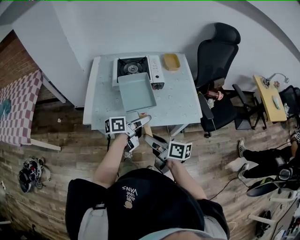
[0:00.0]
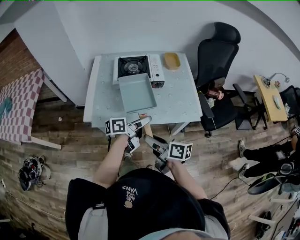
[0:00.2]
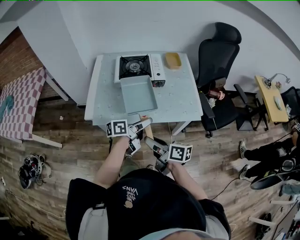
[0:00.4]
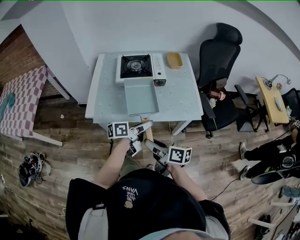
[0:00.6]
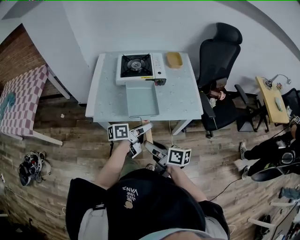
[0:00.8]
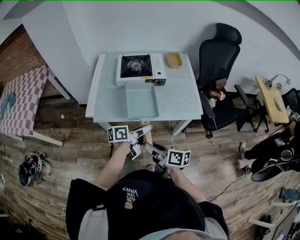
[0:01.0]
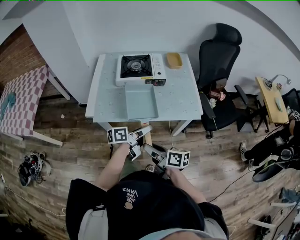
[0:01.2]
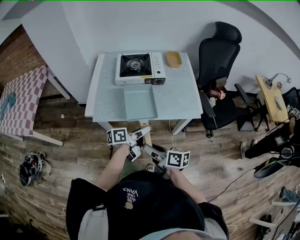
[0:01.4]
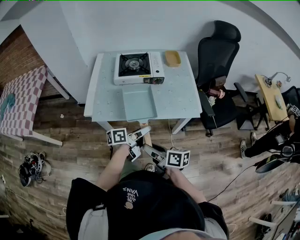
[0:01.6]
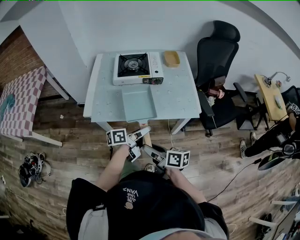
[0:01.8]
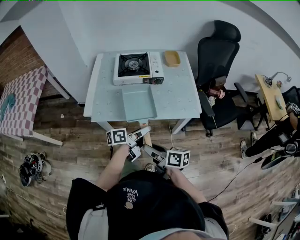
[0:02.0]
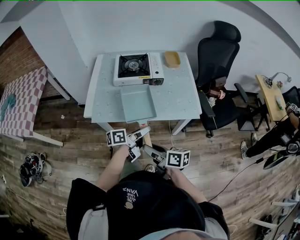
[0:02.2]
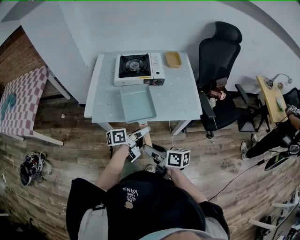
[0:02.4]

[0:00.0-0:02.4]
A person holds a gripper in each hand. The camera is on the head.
0.0 to 1.2 s: Both grippers move backward, about 10 cm.
1.2 to 2.4 s: Neither gripper changes place.

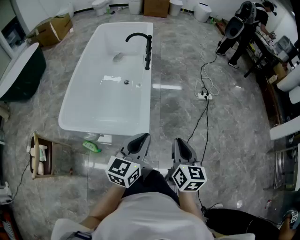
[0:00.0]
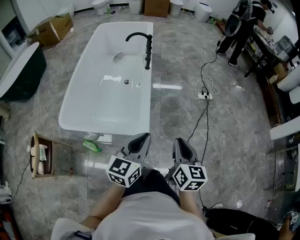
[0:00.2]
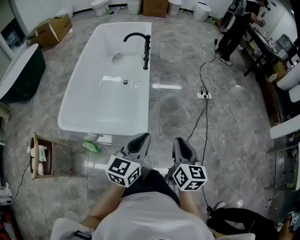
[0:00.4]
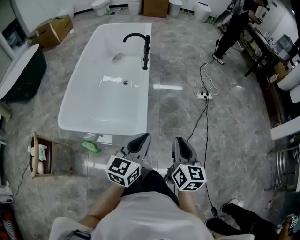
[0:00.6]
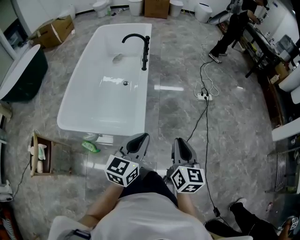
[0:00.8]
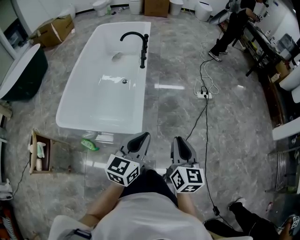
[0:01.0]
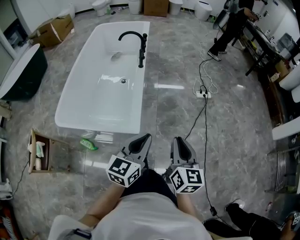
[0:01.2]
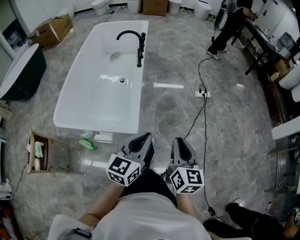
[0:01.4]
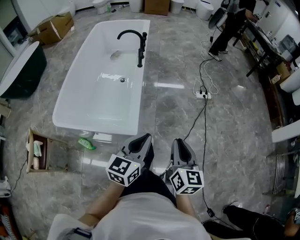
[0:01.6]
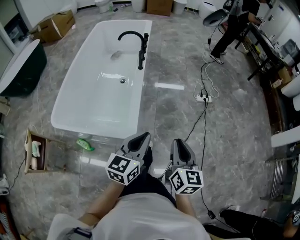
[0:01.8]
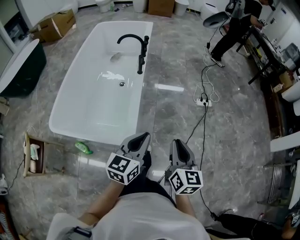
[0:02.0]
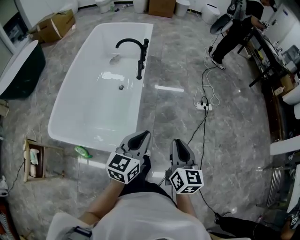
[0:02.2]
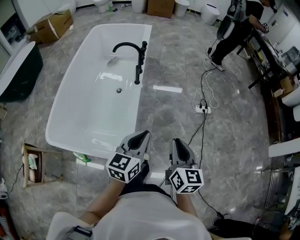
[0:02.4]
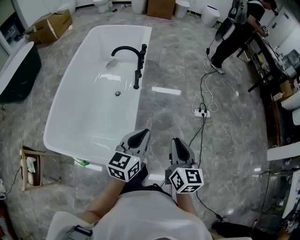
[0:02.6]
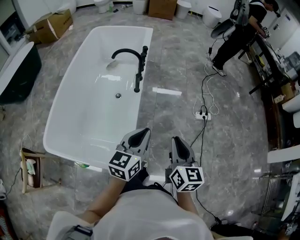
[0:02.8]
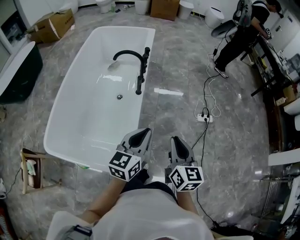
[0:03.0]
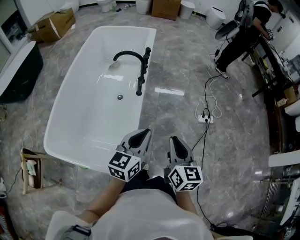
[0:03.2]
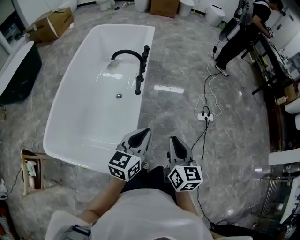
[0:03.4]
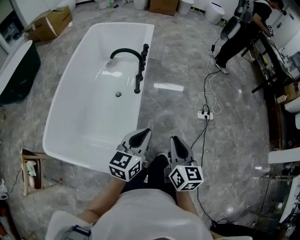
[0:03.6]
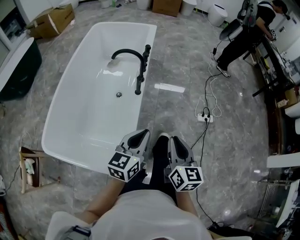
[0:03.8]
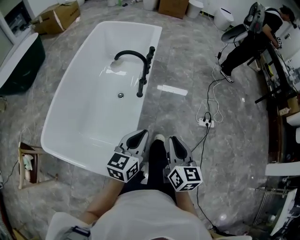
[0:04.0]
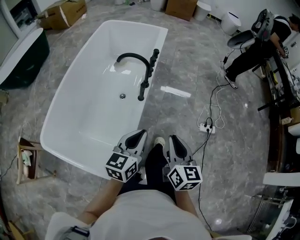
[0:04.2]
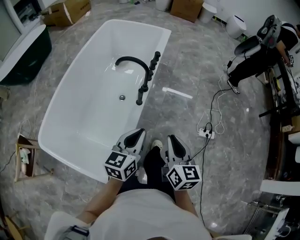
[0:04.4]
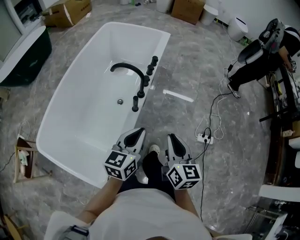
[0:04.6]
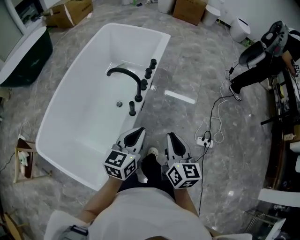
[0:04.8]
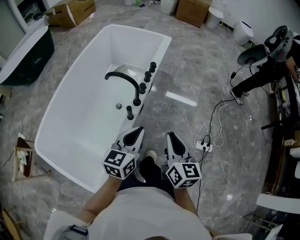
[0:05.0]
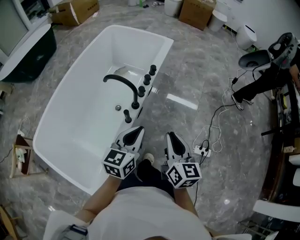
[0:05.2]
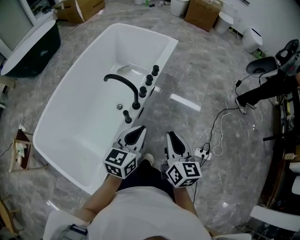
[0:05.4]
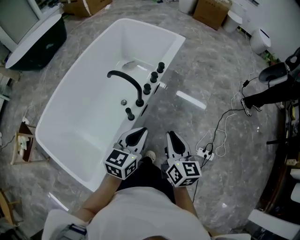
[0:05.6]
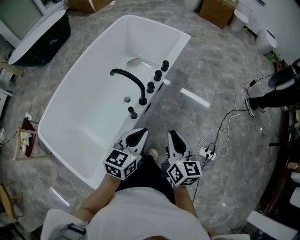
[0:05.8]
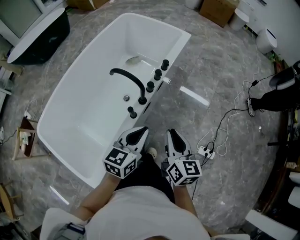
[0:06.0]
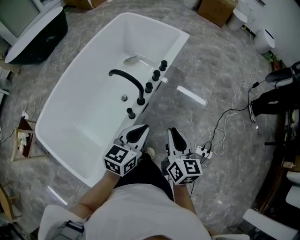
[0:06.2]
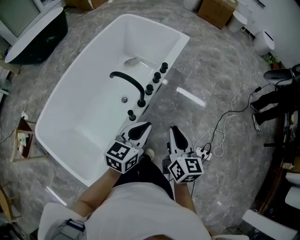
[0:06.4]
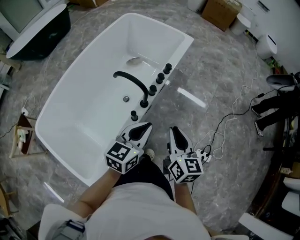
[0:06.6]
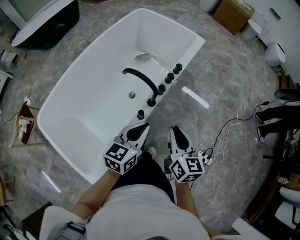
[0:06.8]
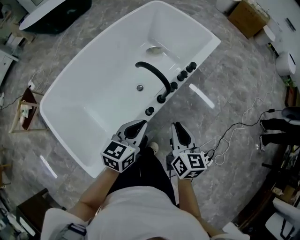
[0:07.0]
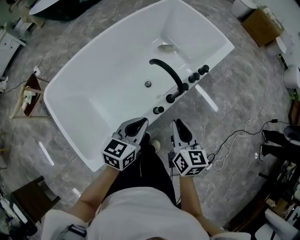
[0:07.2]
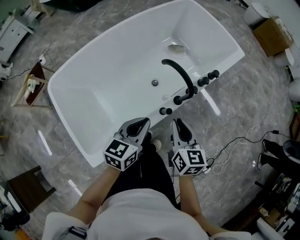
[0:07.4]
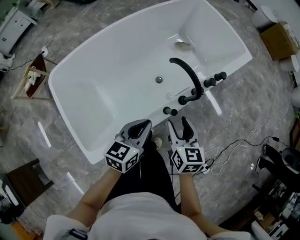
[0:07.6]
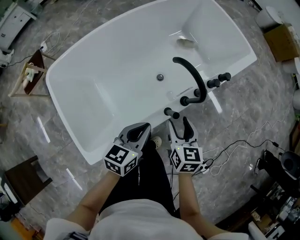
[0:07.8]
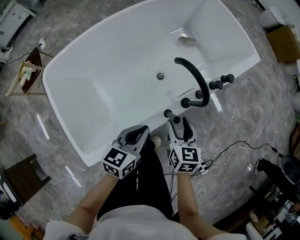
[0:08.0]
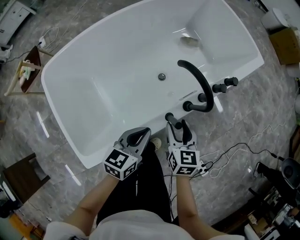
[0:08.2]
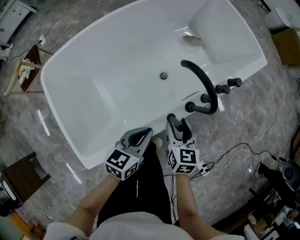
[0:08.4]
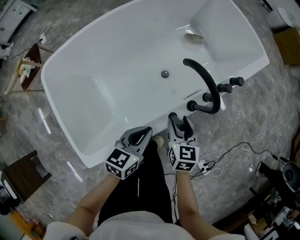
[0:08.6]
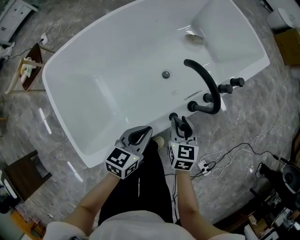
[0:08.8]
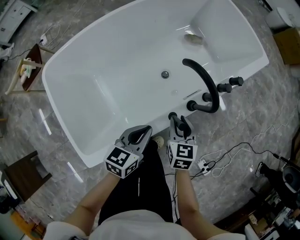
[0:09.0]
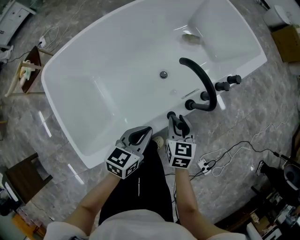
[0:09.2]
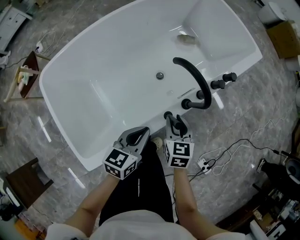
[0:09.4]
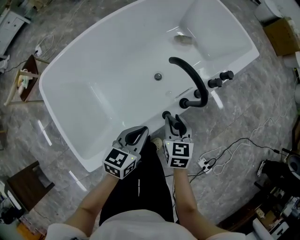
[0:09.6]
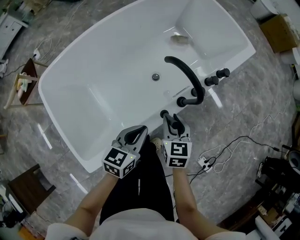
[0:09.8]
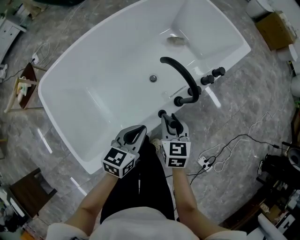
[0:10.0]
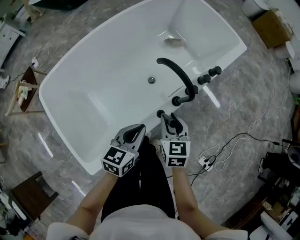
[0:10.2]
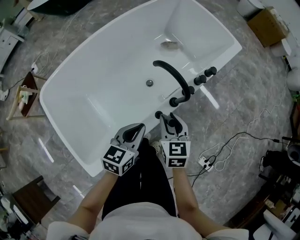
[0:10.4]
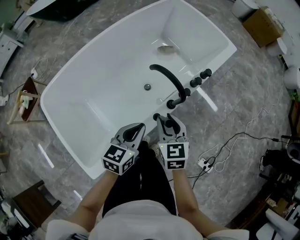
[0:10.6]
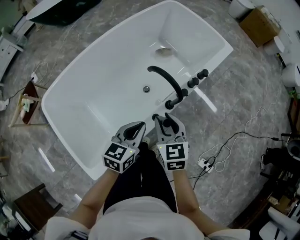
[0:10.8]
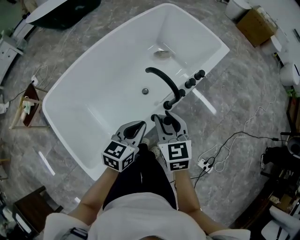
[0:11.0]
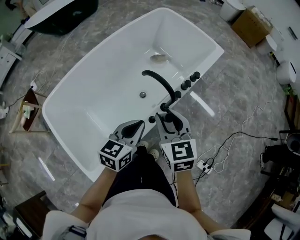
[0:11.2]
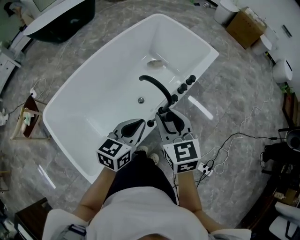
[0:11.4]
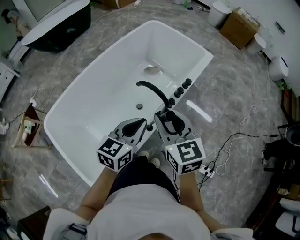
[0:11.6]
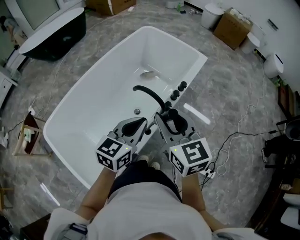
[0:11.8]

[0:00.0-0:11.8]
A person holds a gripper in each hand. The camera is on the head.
0.0 to 1.4 s: The two grippers go some 10 cm to the right.
1.4 to 3.0 s: Both grippers travel together forward, some 30 cm.
3.0 to 4.4 s: The grippers both shift forward by roughly 15 cm.
4.4 to 6.0 s: The right gripper moves forward, approximately 20 cm. Meanwhile the left gripper goes about 20 cm forward and to the right.
6.0 to 7.4 s: The left gripper moves to the left, some 15 cm, and changes its angle by about 20 degrees; the right gripper heads to the left and forward, covering roughly 20 cm, and turns by some 30 degrees.
7.4 to 8.8 s: Both grippers travel together downward, approximately 15 cm. The right gripper opens its fingers.
8.8 to 10.4 s: The two grippers go roughly 5 cm upward.
10.4 to 11.8 s: Both grippers move upward, about 20 cm. The left gripper changes its angle by approximately 20 degrees.

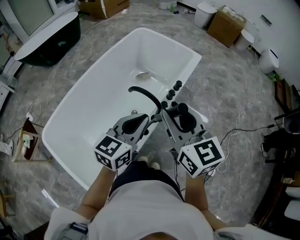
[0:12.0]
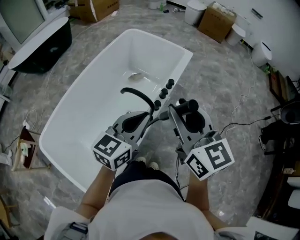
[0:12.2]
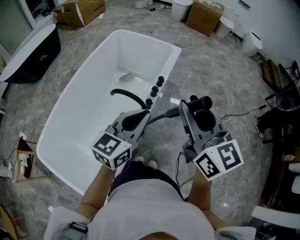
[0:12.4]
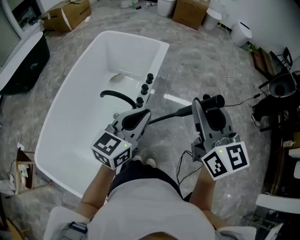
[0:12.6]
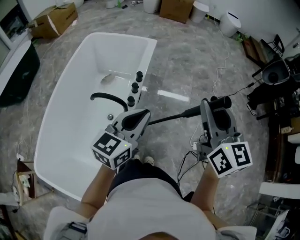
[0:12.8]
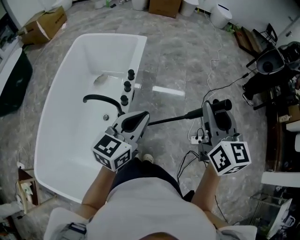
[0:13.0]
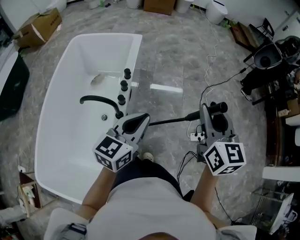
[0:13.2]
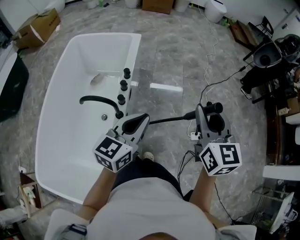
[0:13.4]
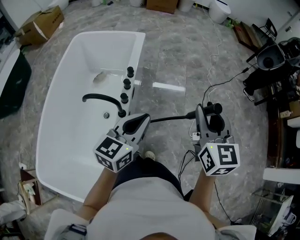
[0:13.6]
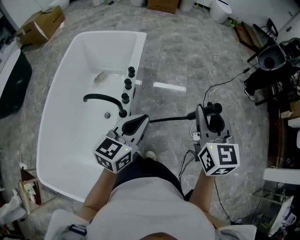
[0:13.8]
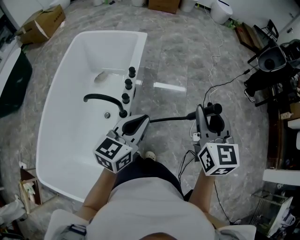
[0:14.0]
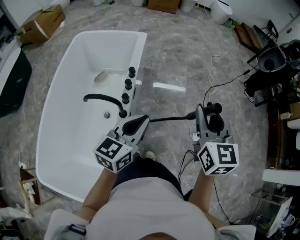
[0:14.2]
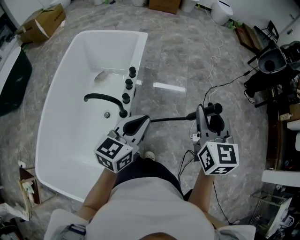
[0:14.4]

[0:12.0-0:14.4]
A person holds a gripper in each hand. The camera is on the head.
12.0 to 13.2 s: The left gripper changes place by roughly 20 cm, and turns by some 30 degrees. Meanwhile the right gripper shifts by some 30 cm, and changes its angle by roughly 50 degrees.
13.2 to 14.4 s: The grippers move only a little.

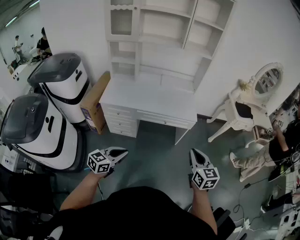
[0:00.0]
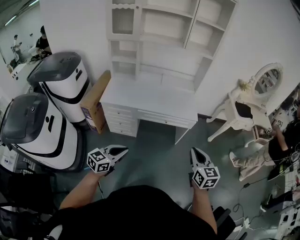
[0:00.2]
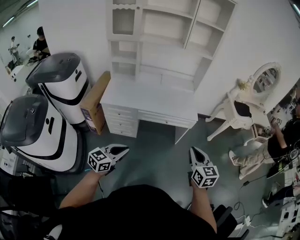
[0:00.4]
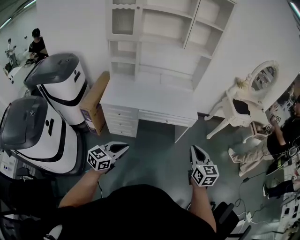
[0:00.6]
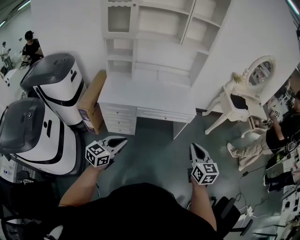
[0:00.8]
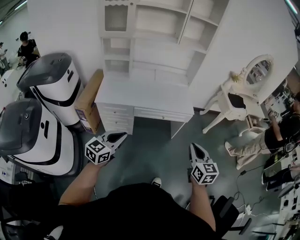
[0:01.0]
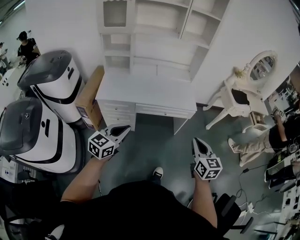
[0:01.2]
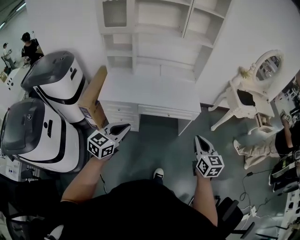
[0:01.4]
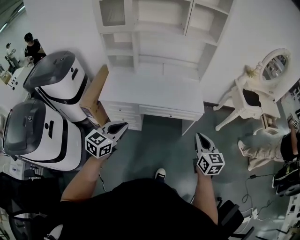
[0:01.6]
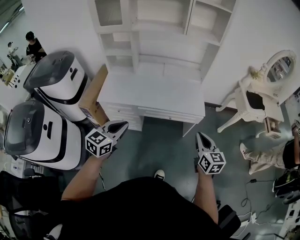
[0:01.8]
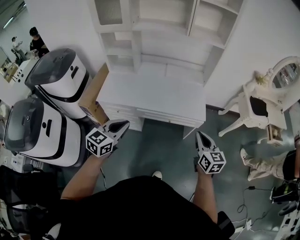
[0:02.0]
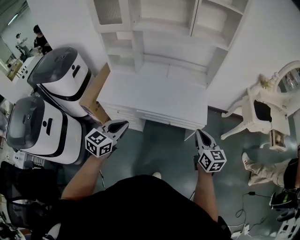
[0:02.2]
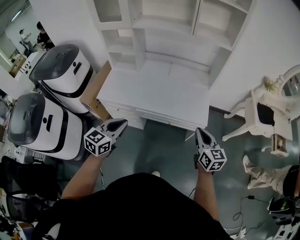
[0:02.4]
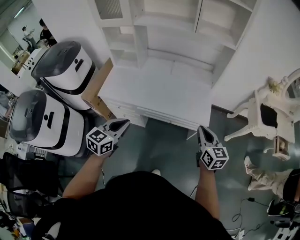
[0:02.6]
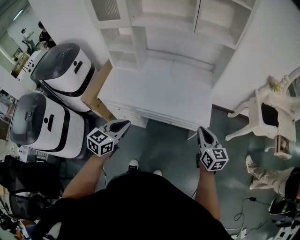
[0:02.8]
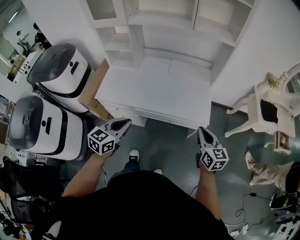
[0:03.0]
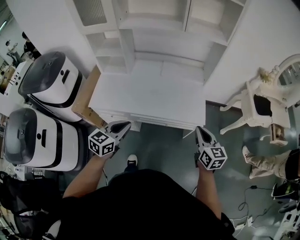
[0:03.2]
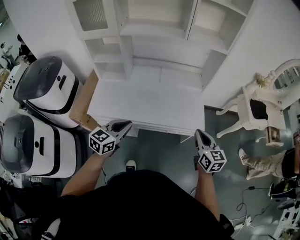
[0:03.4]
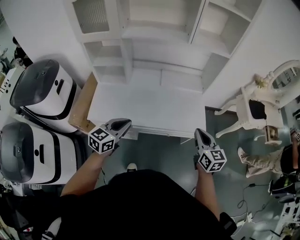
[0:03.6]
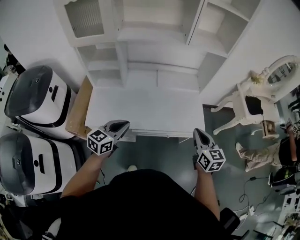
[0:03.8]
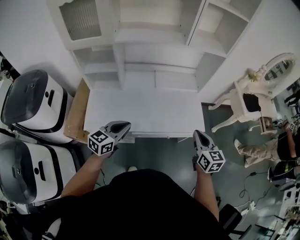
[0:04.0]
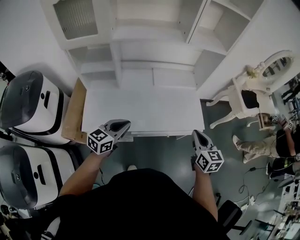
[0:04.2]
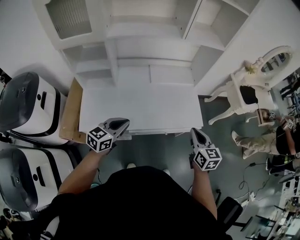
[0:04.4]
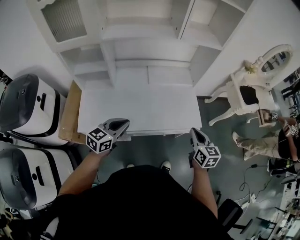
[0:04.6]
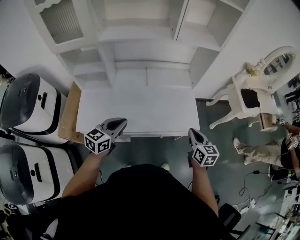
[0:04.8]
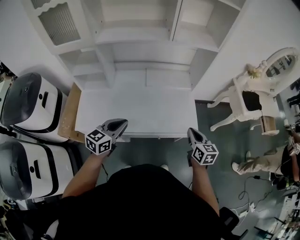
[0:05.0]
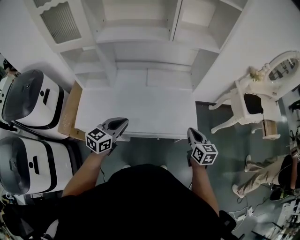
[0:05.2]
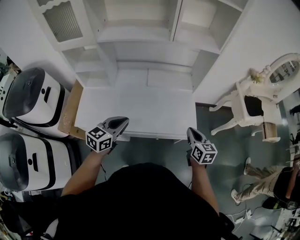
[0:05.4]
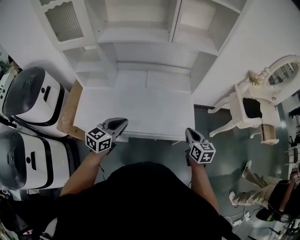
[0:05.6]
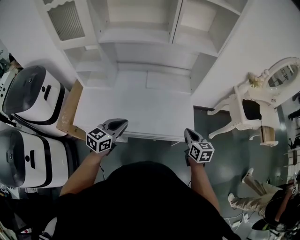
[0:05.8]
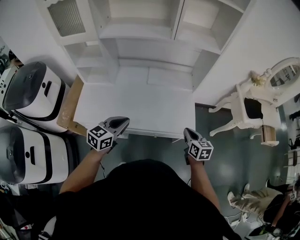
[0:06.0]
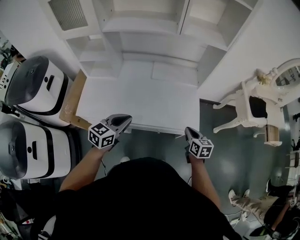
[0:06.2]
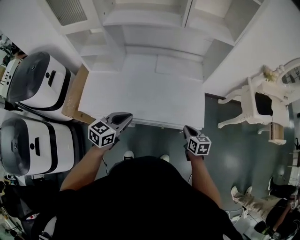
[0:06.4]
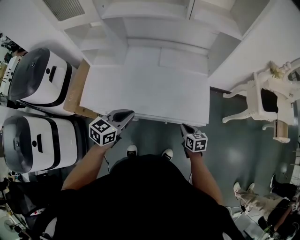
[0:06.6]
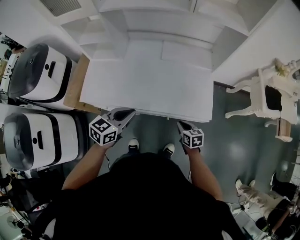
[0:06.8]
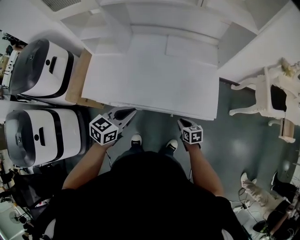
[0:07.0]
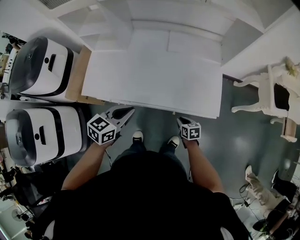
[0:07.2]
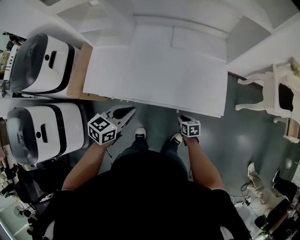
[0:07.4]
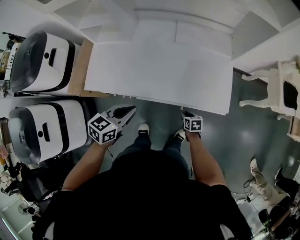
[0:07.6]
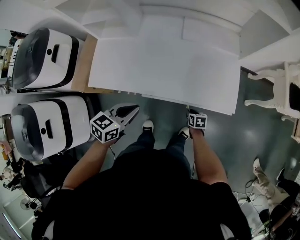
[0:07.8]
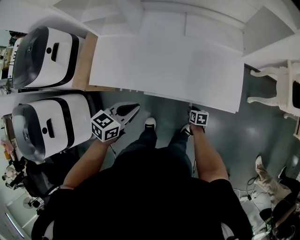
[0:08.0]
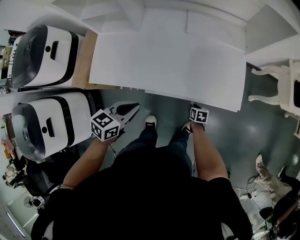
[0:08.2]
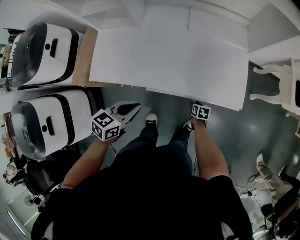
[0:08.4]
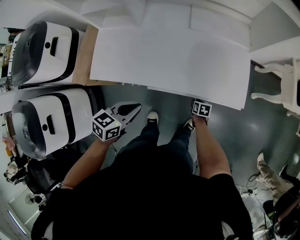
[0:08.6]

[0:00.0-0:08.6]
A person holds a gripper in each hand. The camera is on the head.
0.0 to 1.4 s: The right gripper ends up some 5 cm from where it was. Meanwhile the left gripper goes roughly 15 cm forward, upward and to the left.
1.4 to 2.8 s: The left gripper shifts some 20 cm forward and to the right; the right gripper travels forward by roughly 25 cm.
2.8 to 4.4 s: The right gripper heads to the left and forward, covering approximately 15 cm, and turns by approximately 20 degrees. The left gripper moves forward and to the left, about 20 cm, and turns by about 30 degrees.
4.4 to 5.8 s: The left gripper is displaced to the right by roughly 10 cm. Meanwhile the right gripper travels to the right, forward and downward by about 15 cm.
5.8 to 7.2 s: The right gripper shifts about 30 cm downward, and swivels about 30 degrees, while the left gripper moves downward, roughly 10 cm.
7.2 to 8.6 s: The left gripper travels downward and to the left by approximately 10 cm, while the right gripper travels downward by about 15 cm.
